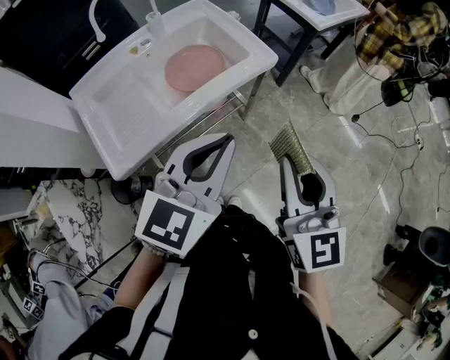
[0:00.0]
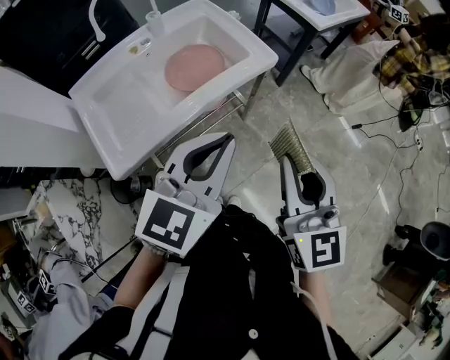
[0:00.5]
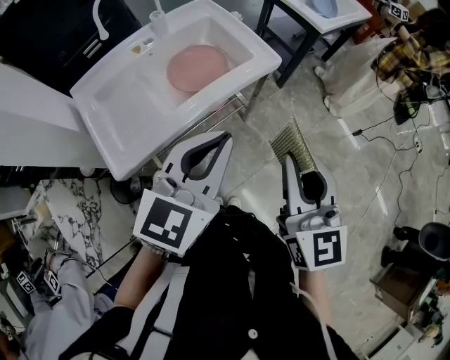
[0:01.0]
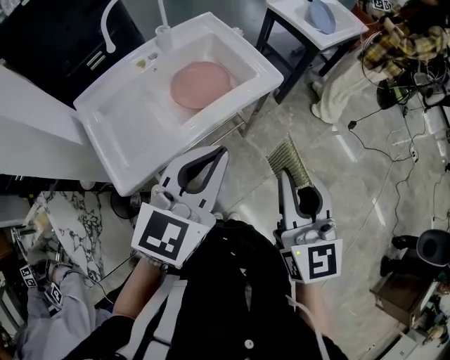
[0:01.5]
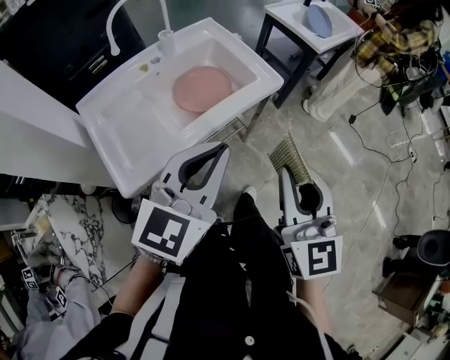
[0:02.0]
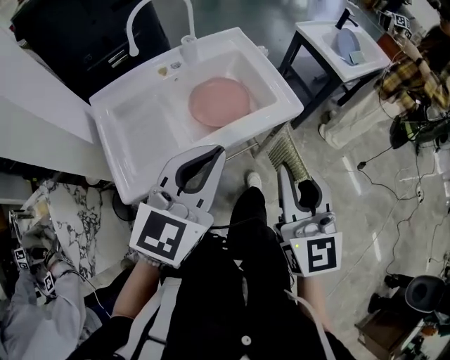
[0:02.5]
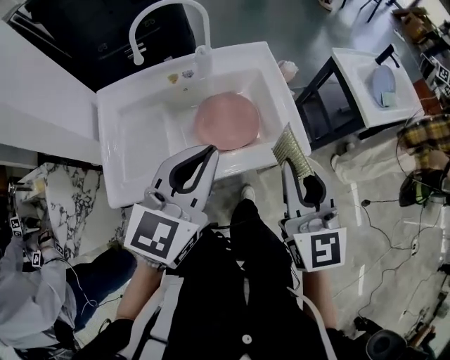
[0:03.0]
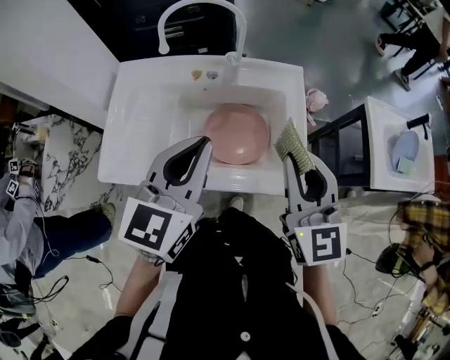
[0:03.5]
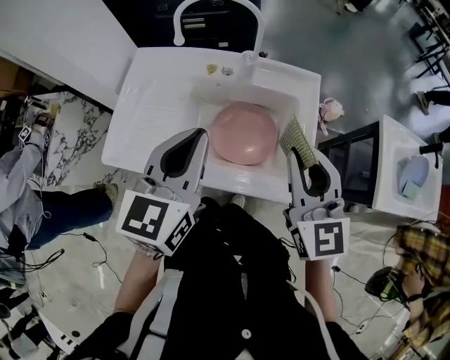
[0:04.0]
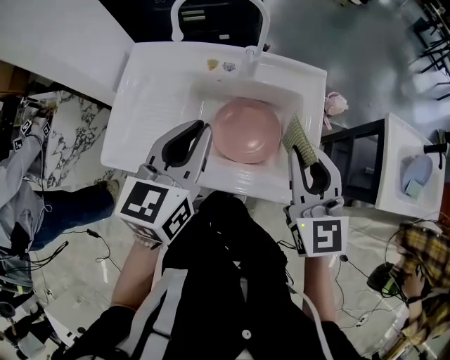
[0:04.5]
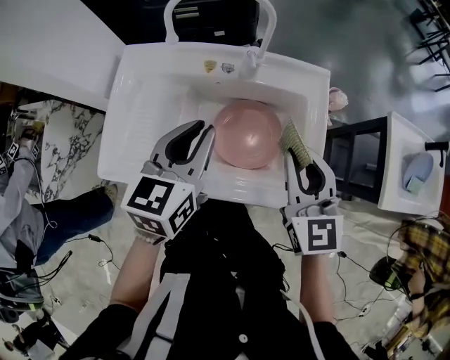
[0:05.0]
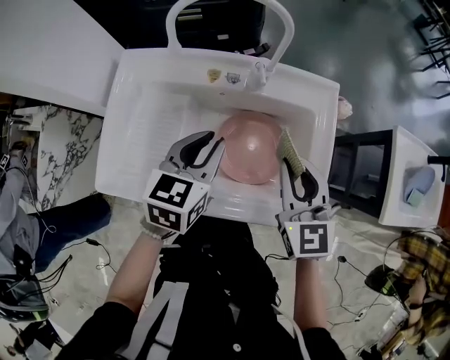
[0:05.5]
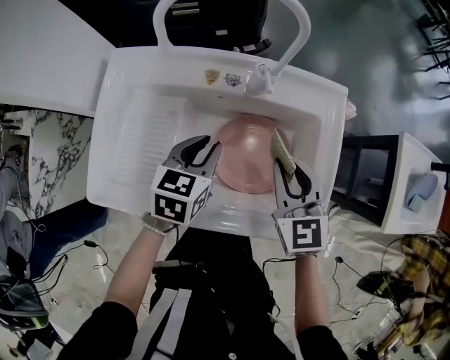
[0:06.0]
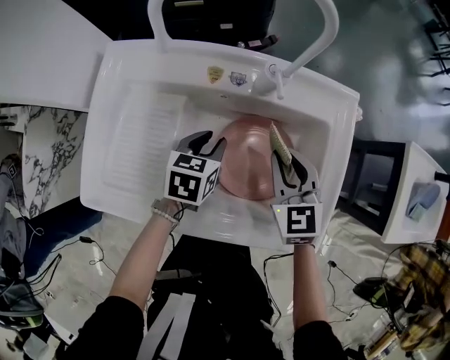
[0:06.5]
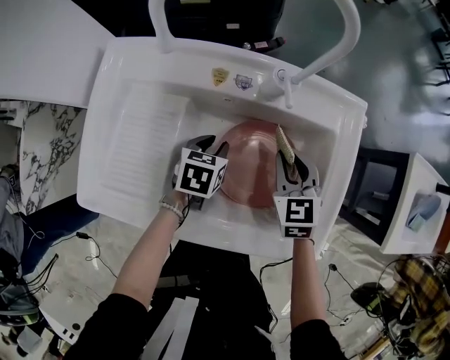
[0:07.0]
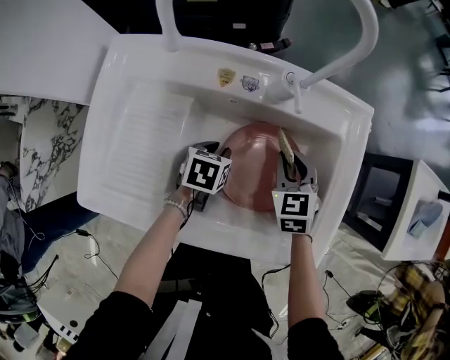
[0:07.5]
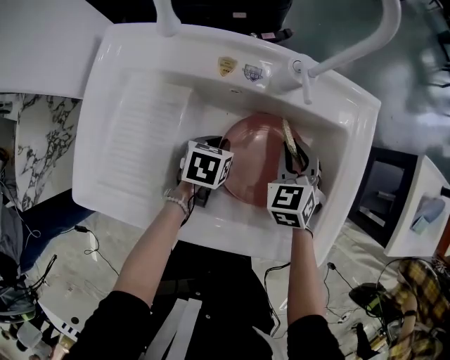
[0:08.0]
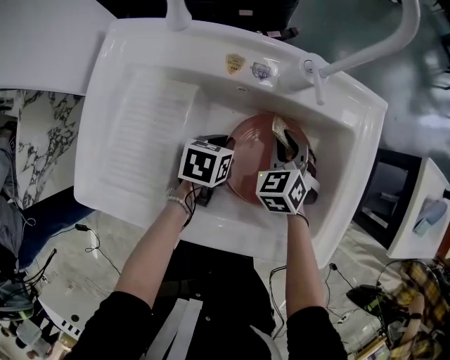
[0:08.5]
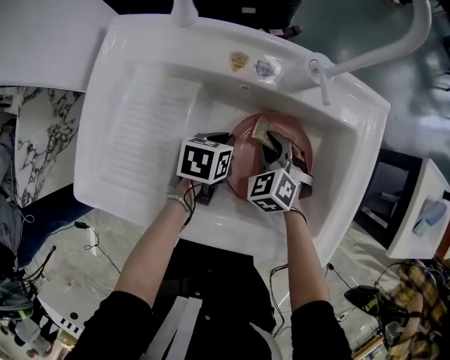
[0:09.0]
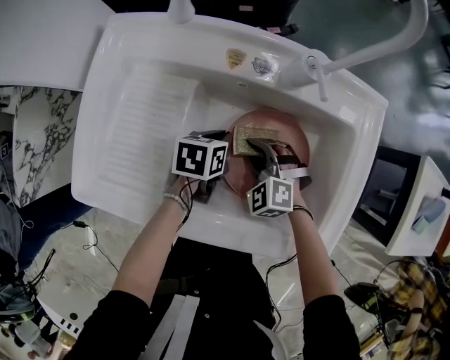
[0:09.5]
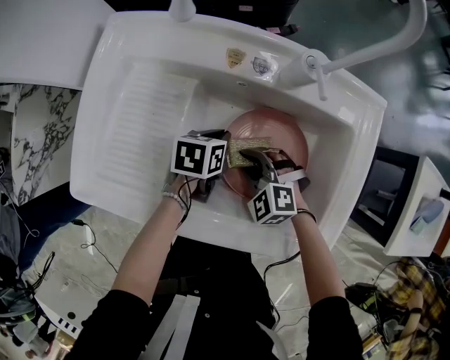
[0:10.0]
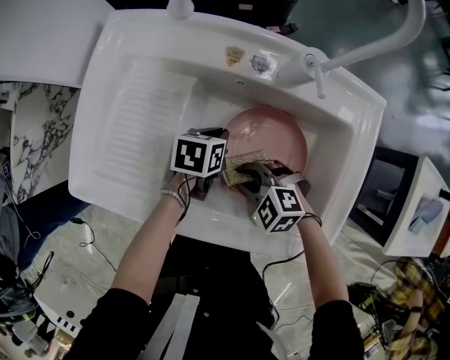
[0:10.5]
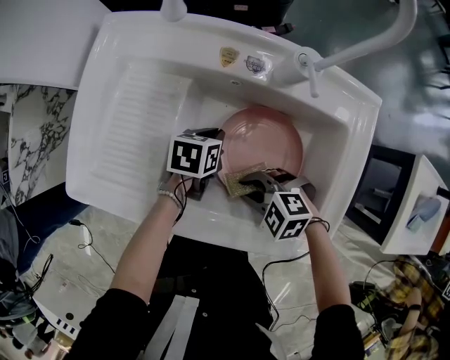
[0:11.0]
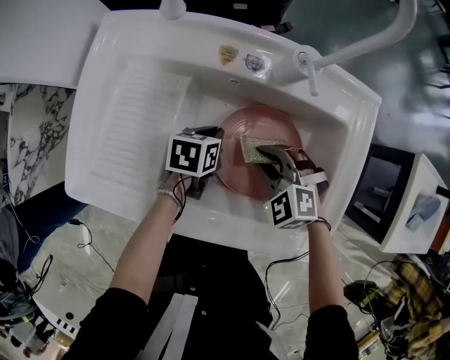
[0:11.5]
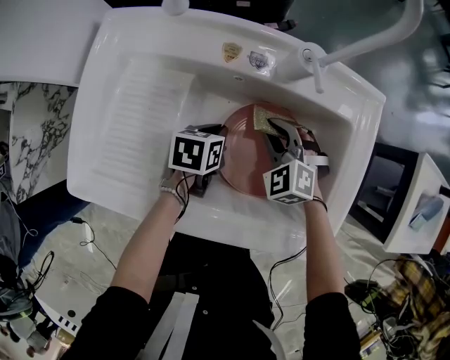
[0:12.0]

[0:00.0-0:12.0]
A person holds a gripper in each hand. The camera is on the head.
0:00.0 to 0:02.0: The left gripper is displaced to the left by about 5 cm.
0:02.0 to 0:04.0: The right gripper moves about 40 cm, and rotates approximately 50 degrees. The left gripper moves some 25 cm, and turns by approximately 60 degrees.
0:04.0 to 0:06.0: Both grippers travel together downward and forward, some 25 cm. The left gripper rotates about 30 degrees.
0:06.0 to 0:08.0: The left gripper heads downward, covering approximately 20 cm, and changes its angle by approximately 20 degrees, while the right gripper heads downward and forward, covering some 15 cm, and swivels roughly 30 degrees.
0:08.0 to 0:10.0: The right gripper changes place by about 15 cm, and turns by roughly 50 degrees.
0:10.0 to 0:12.0: The right gripper changes place by about 10 cm.

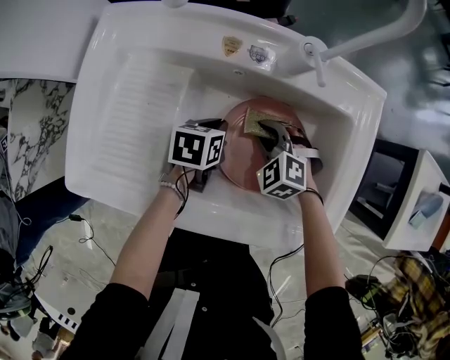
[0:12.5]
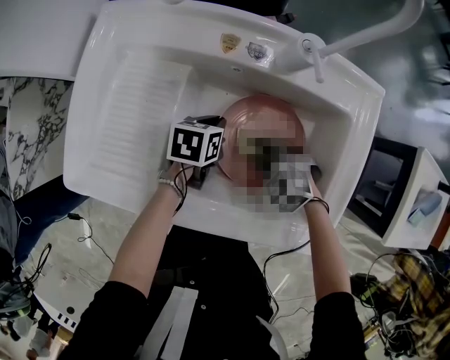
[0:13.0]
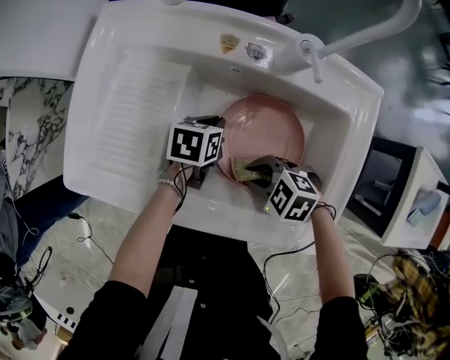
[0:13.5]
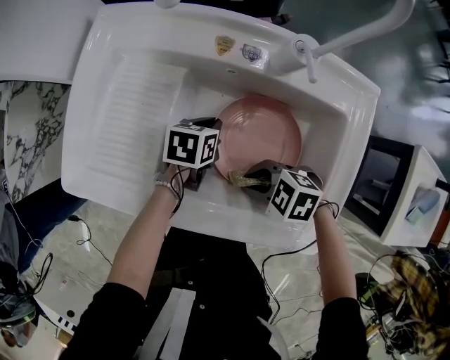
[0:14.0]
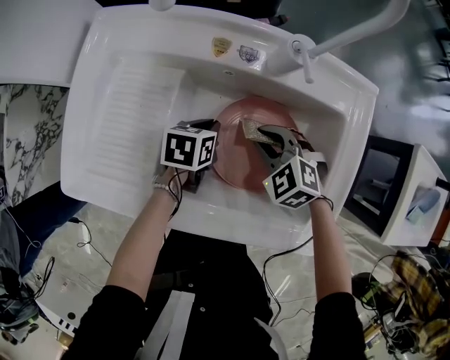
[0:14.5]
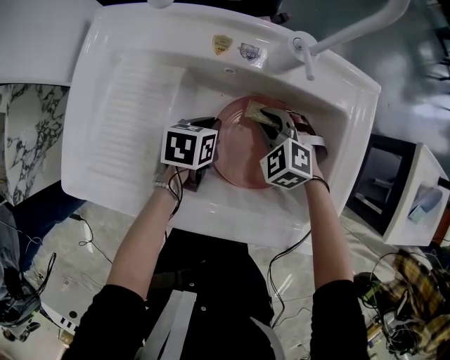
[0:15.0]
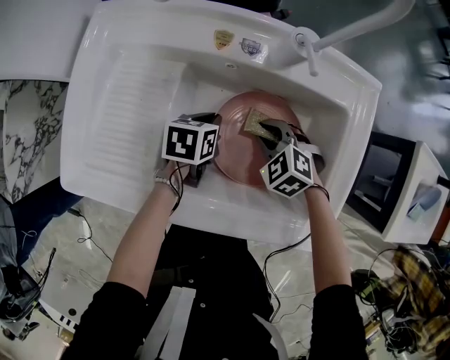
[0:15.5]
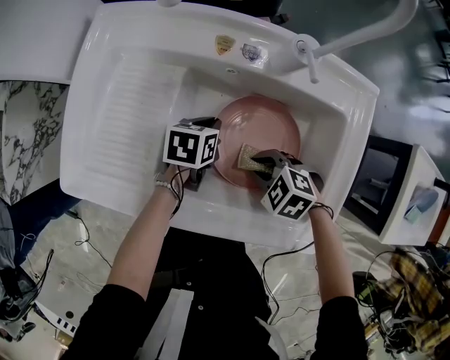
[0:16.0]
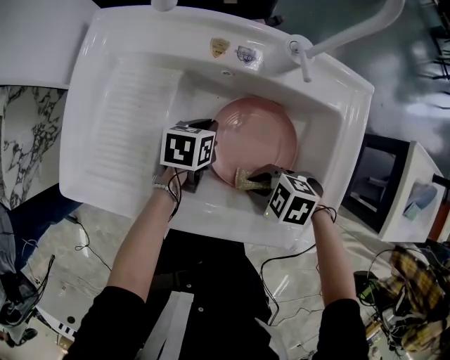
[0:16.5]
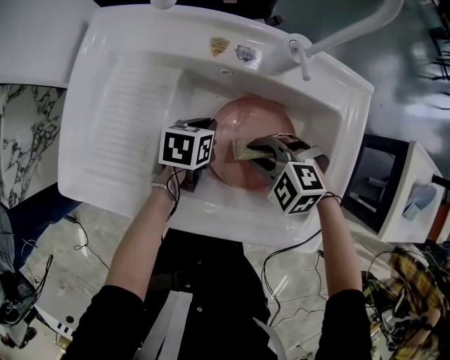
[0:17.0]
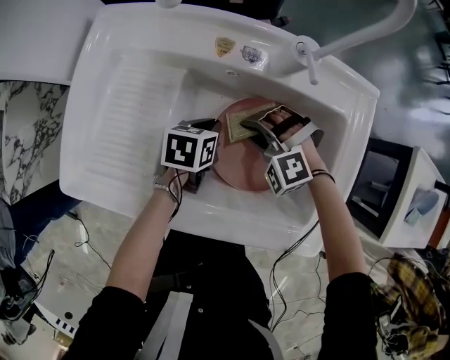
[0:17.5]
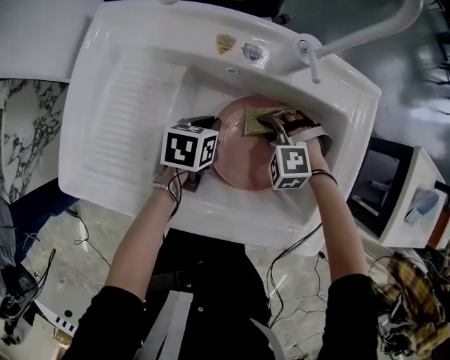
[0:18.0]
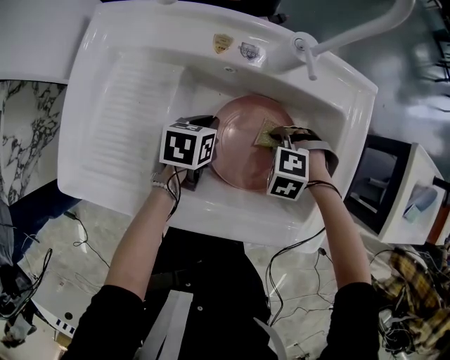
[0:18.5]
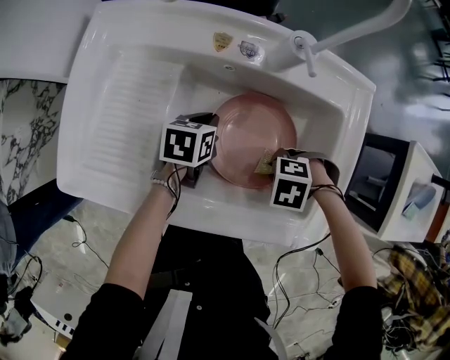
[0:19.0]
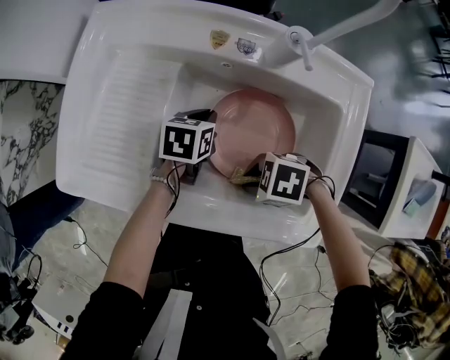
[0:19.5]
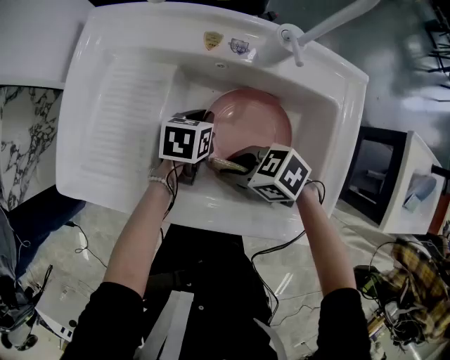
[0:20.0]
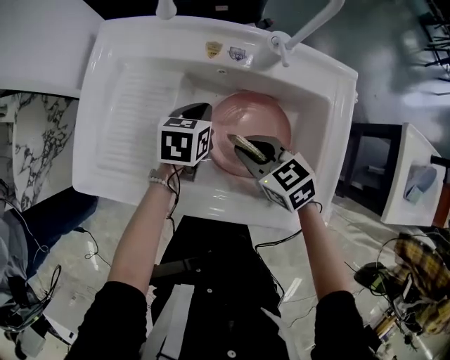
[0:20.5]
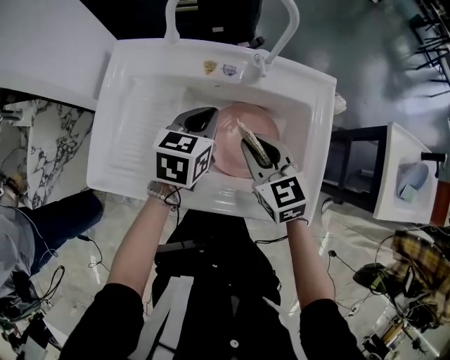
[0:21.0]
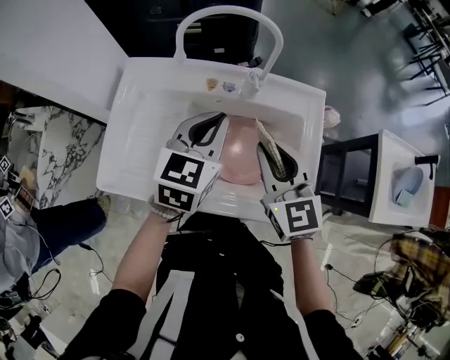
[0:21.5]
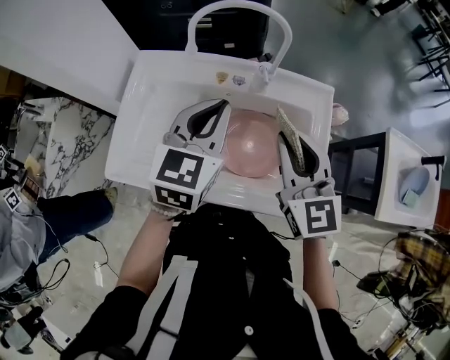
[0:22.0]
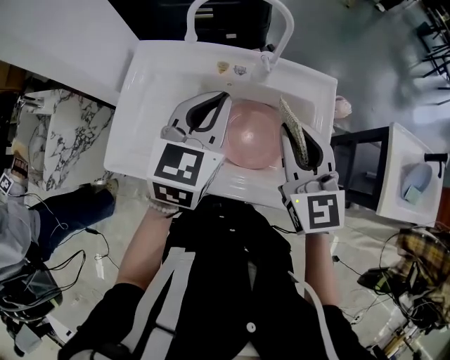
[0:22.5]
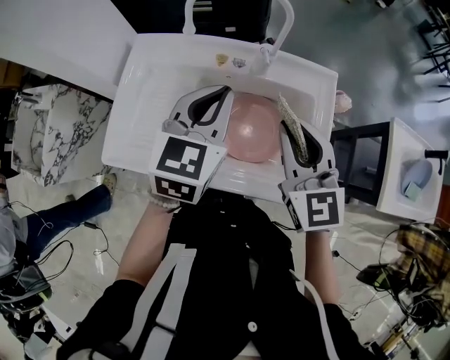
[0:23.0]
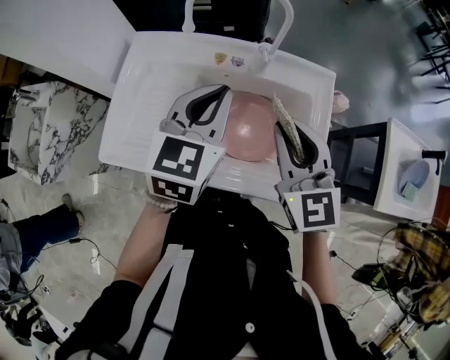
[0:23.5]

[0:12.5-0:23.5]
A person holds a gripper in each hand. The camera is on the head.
0:14.5 to 0:16.0: The right gripper shifts by approximately 10 cm, and turns by roughly 20 degrees.
0:16.0 to 0:18.0: The right gripper moves approximately 10 cm, and rotates approximately 40 degrees.
0:18.0 to 0:20.0: The right gripper changes place by approximately 15 cm, and turns by roughly 70 degrees.
0:20.0 to 0:21.5: Both grippers move upward, roughly 30 cm. The right gripper changes its angle by roughly 70 degrees, while the left gripper angles its fingers upward, by some 30 degrees.
0:21.5 to 0:23.5: The grippers stay close to where they were, moving slightly.

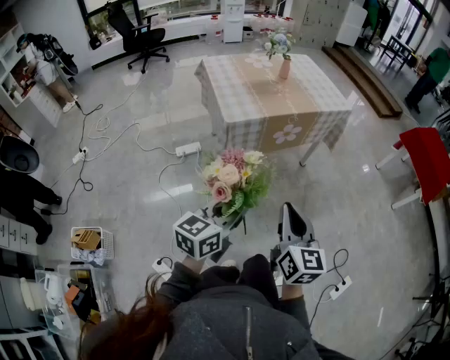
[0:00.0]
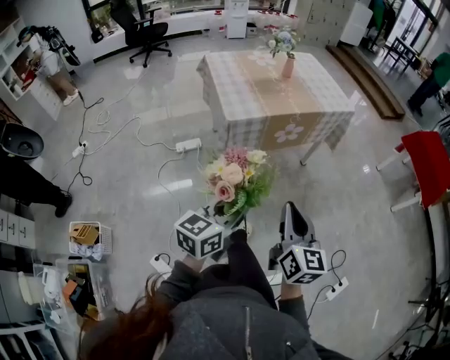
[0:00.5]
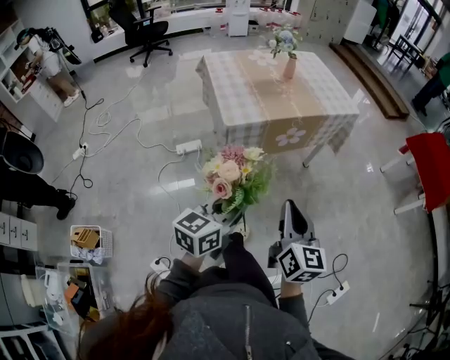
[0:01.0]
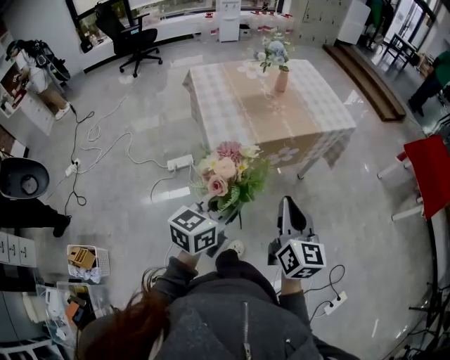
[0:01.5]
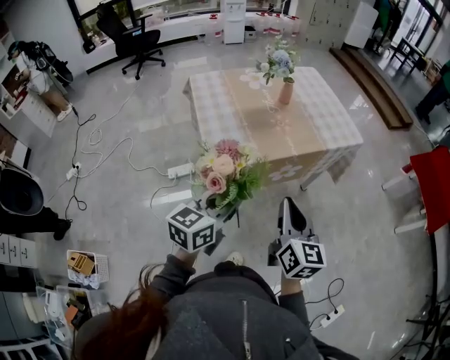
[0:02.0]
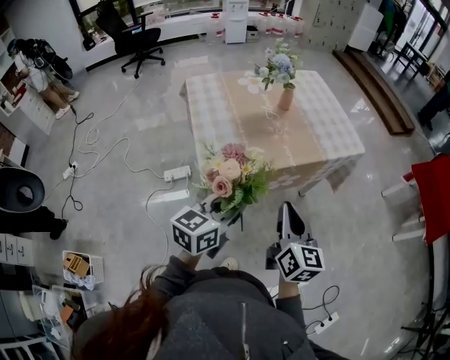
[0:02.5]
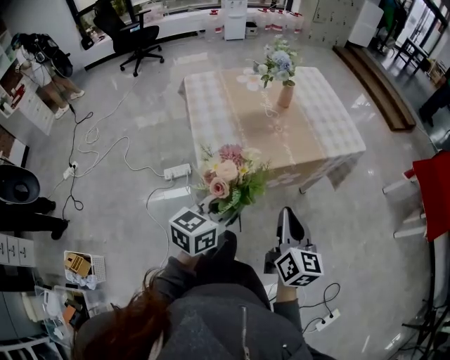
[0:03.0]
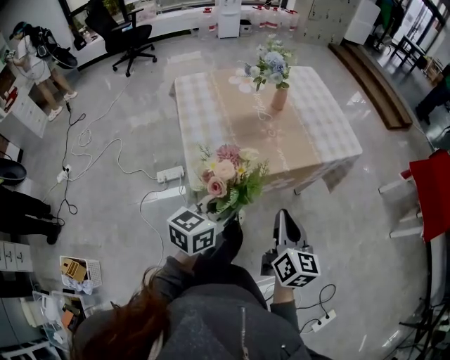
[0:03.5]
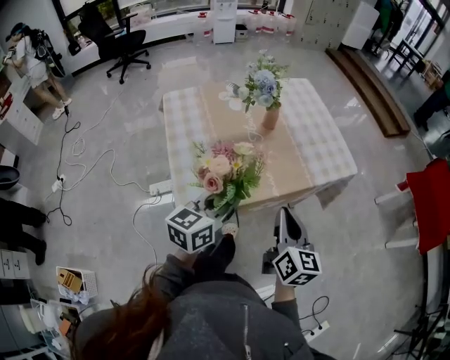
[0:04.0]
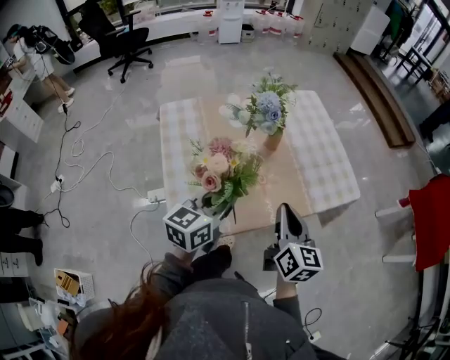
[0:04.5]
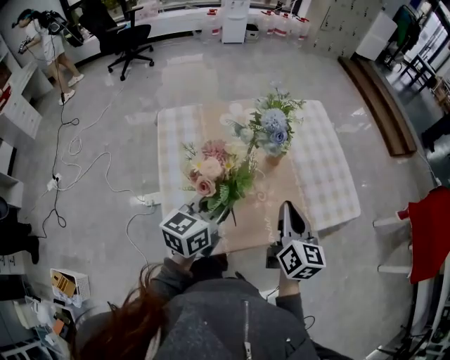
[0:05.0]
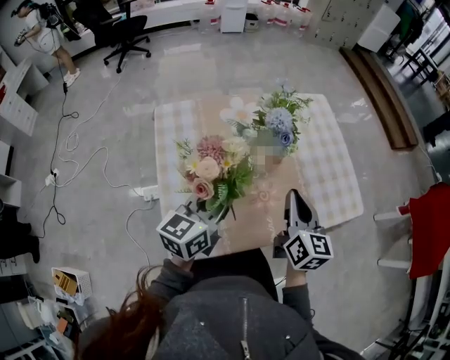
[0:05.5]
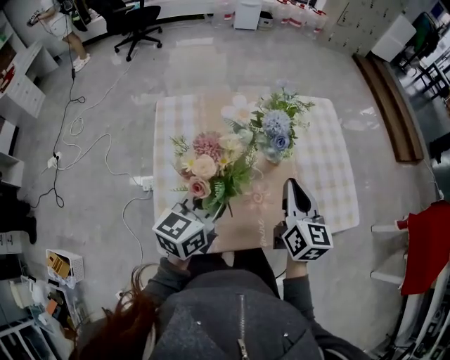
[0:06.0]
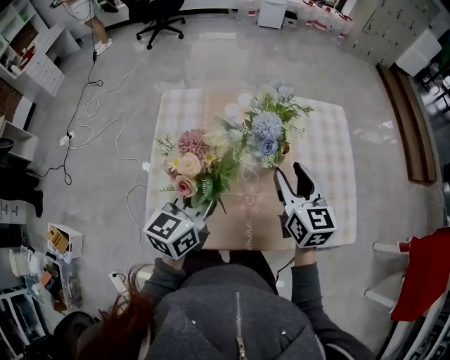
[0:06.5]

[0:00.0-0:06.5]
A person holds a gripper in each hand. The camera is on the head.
0:00.0 to 0:02.0: Both grippers move forward, some 30 cm.
0:02.0 to 0:04.5: Both grippers move forward, approximately 30 cm.
0:04.5 to 0:06.5: The right gripper moves forward, about 20 cm, rotates some 30 degrees, and opens; the left gripper travels forward by some 10 cm, and swivels approximately 20 degrees.
